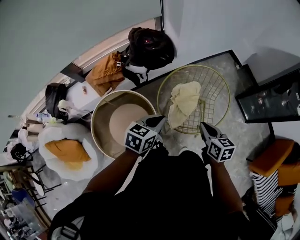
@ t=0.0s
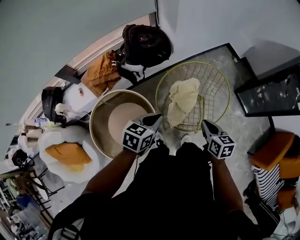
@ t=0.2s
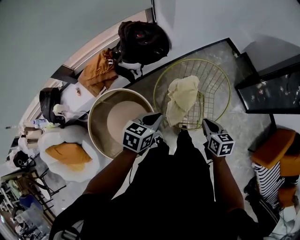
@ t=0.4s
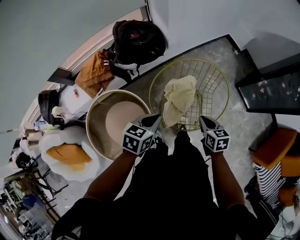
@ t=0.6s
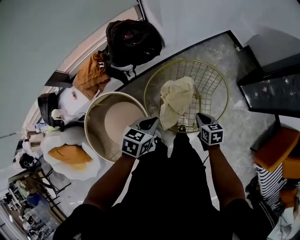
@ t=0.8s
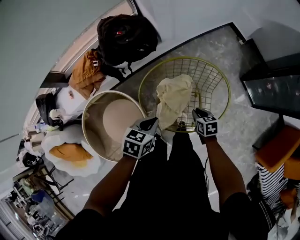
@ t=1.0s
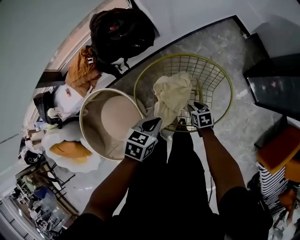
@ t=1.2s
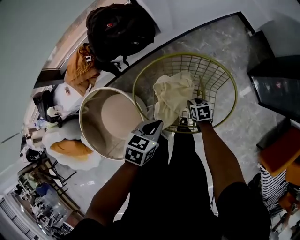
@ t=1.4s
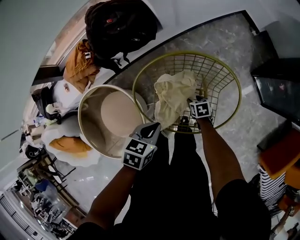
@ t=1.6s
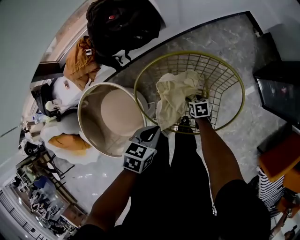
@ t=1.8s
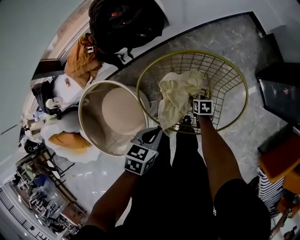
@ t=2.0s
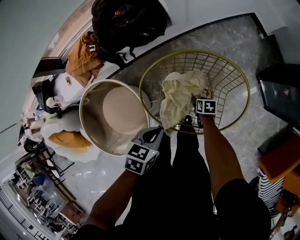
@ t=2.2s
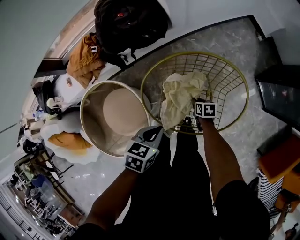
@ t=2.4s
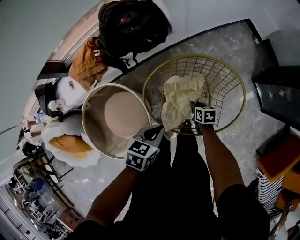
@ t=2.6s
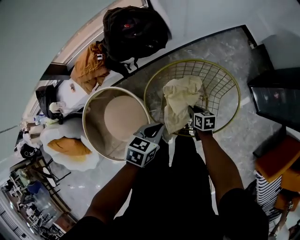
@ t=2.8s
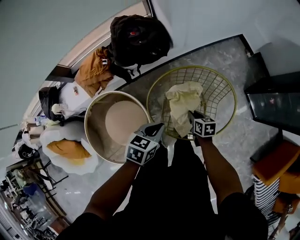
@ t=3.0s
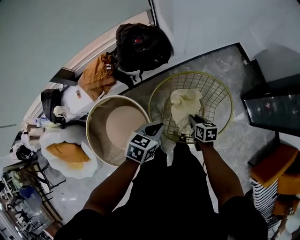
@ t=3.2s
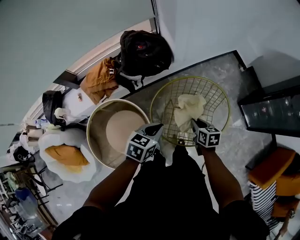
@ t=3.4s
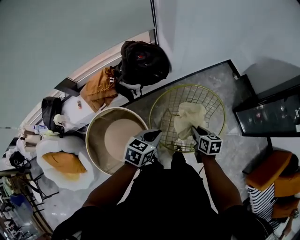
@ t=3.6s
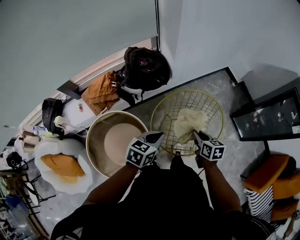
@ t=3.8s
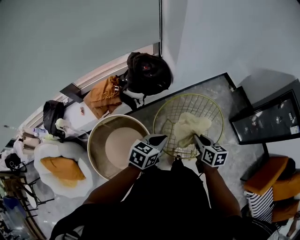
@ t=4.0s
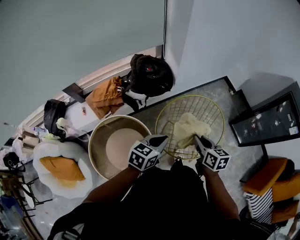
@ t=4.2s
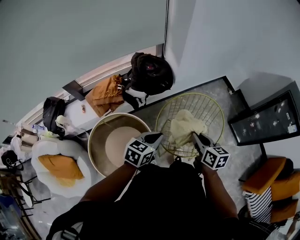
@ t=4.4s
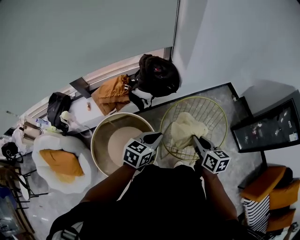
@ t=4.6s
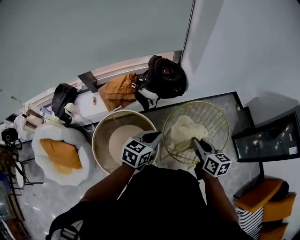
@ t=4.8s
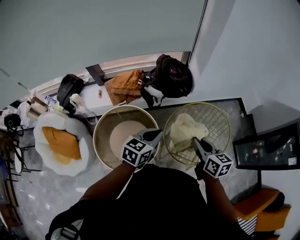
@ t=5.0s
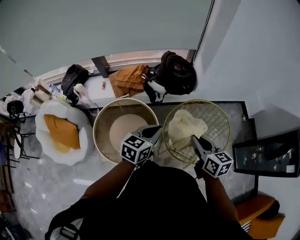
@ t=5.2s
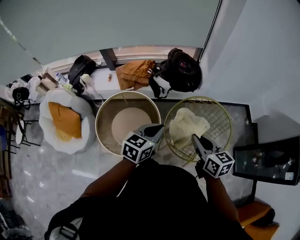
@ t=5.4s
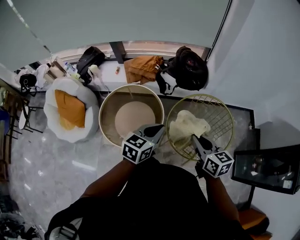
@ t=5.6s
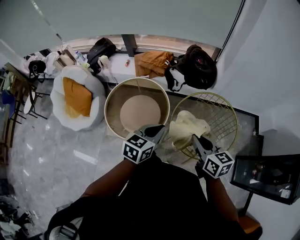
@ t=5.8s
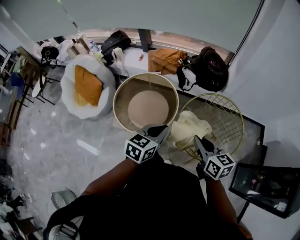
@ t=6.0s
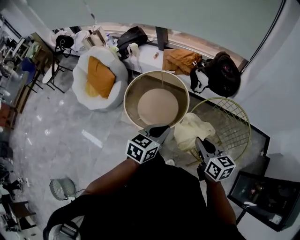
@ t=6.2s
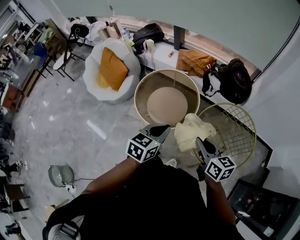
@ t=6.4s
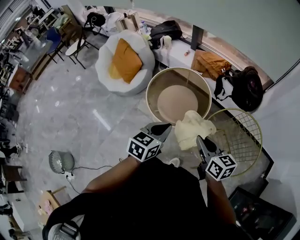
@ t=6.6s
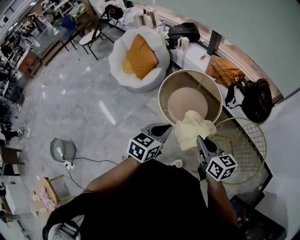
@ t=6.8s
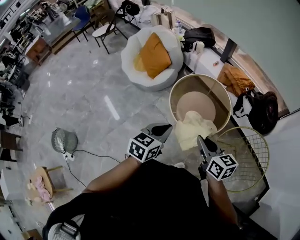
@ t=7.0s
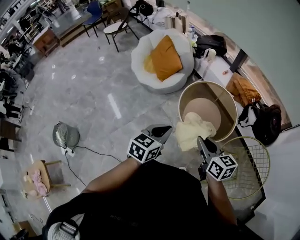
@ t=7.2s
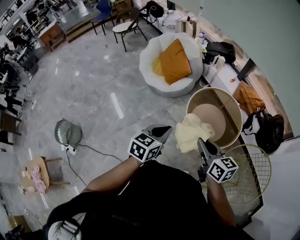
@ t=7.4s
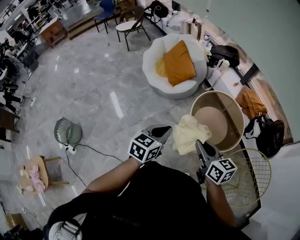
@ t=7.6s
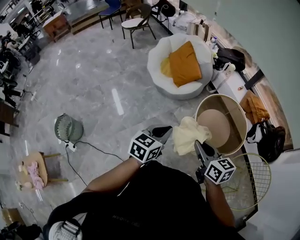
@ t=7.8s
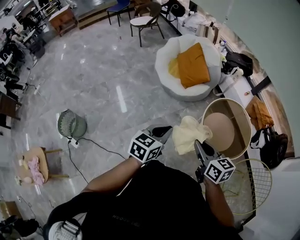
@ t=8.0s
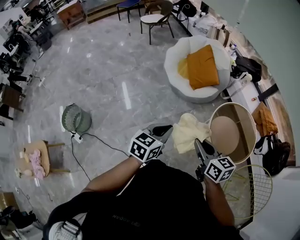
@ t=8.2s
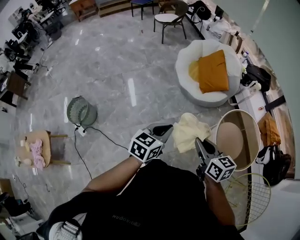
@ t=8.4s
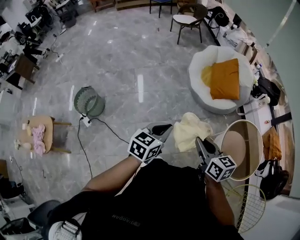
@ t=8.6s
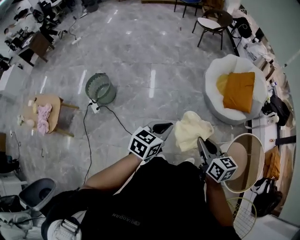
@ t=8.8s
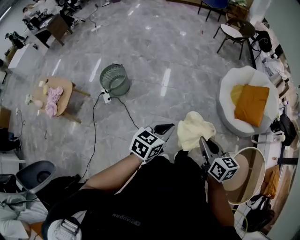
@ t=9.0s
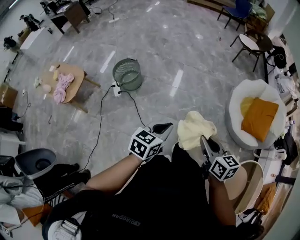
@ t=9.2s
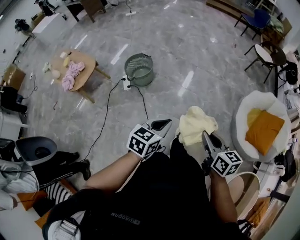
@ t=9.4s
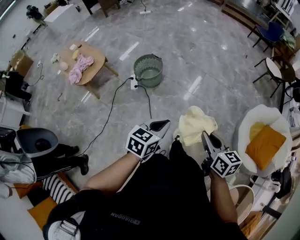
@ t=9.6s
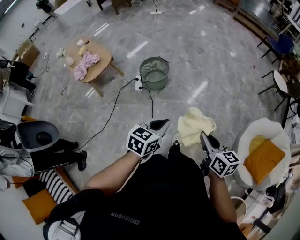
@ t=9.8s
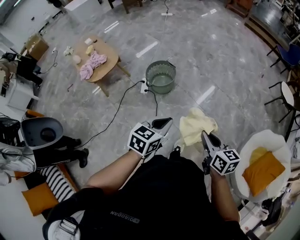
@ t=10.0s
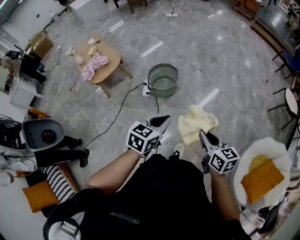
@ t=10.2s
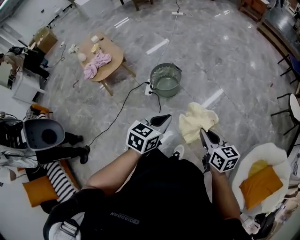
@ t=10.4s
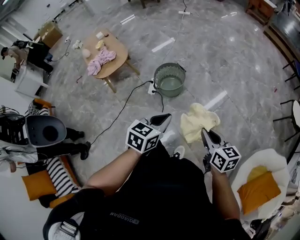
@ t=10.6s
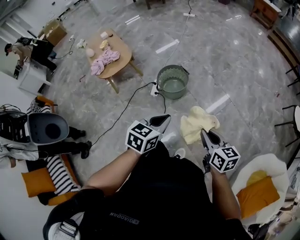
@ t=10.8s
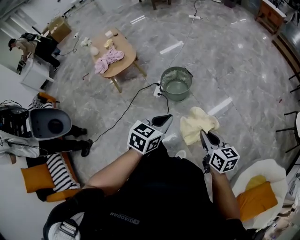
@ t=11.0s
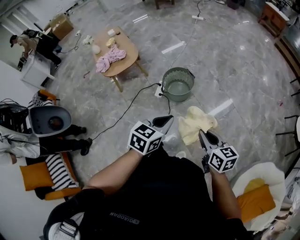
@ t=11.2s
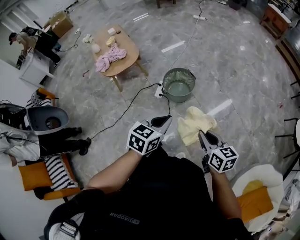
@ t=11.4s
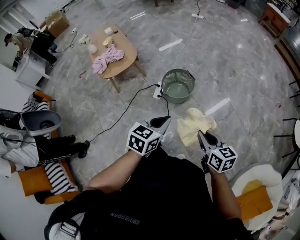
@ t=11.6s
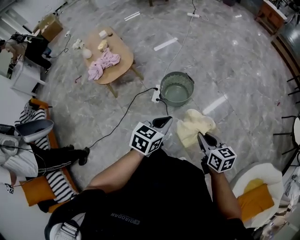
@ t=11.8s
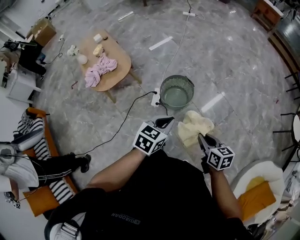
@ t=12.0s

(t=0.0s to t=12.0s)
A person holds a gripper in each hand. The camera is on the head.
t=0.0s - t=1.6s: The left gripper shifts roughly 25 cm downward, forward and to the right, and rotates about 20 degrees. The right gripper moves downward, some 40 cm, tips its fingers downward by about 30 degrees, and opens.
t=1.6s - t=3.0s: The right gripper goes about 15 cm upward, and closes. Meanwhile the left gripper shifts some 10 cm upward.
t=3.0s - t=4.4s: The right gripper goes some 30 cm upward, and turns by some 20 degrees; the left gripper travels upward, to the left and backward by approximately 15 cm.
t=4.4s - t=6.0s: The right gripper shifts by approximately 15 cm, and turns by about 50 degrees. The left gripper changes place by some 20 cm, and swivels roughly 40 degrees.
t=6.0s - t=7.6s: Both grippers are carried roughly 50 cm. The right gripper changes its angle by roughly 40 degrees. Meanwhile the left gripper rotates about 40 degrees.
t=7.6s - t=9.0s: The left gripper ends up some 40 cm from where it was, and swivels about 40 degrees; the right gripper shifts by about 40 cm, and changes its angle by some 40 degrees.
t=9.0s - t=10.4s: The right gripper shifts by about 40 cm, and changes its angle by some 40 degrees; the left gripper changes place by about 35 cm, and rotates approximately 40 degrees.
t=10.4s - t=12.0s: The right gripper moves forward, to the left and downward, roughly 25 cm. Meanwhile the left gripper heads forward and to the left, covering roughly 25 cm.

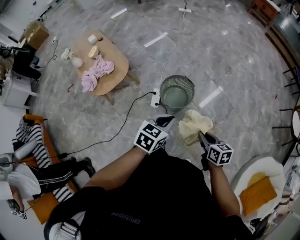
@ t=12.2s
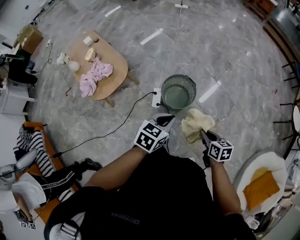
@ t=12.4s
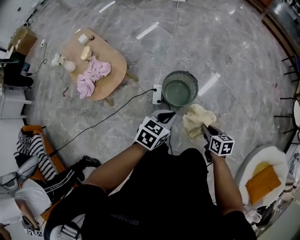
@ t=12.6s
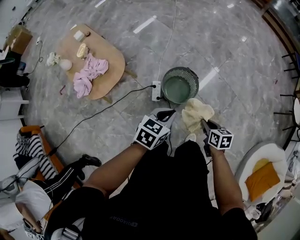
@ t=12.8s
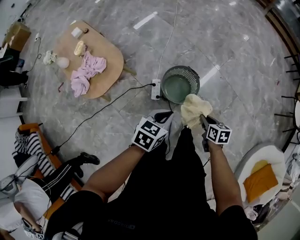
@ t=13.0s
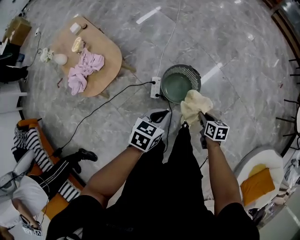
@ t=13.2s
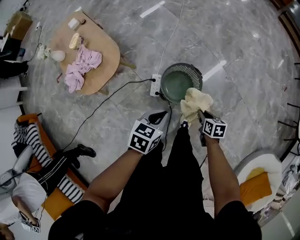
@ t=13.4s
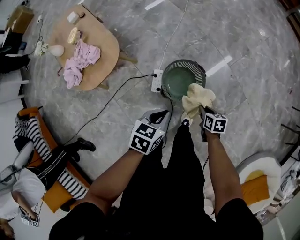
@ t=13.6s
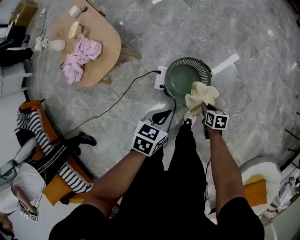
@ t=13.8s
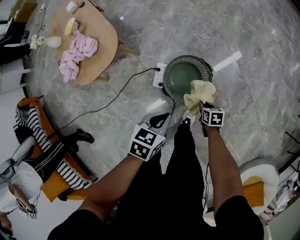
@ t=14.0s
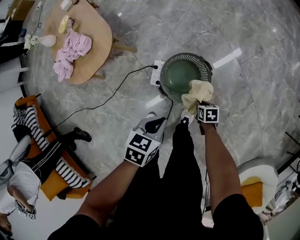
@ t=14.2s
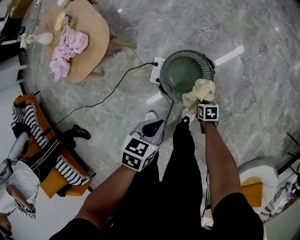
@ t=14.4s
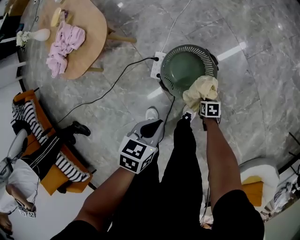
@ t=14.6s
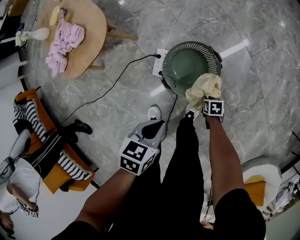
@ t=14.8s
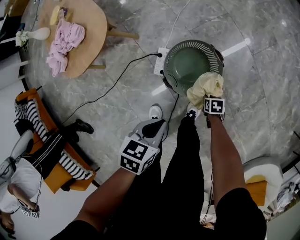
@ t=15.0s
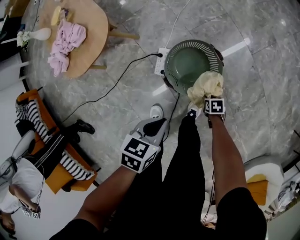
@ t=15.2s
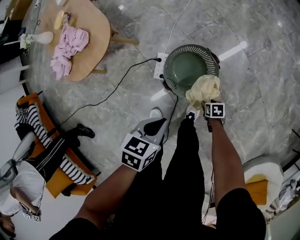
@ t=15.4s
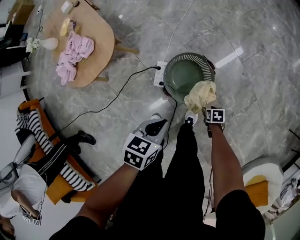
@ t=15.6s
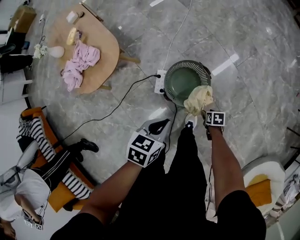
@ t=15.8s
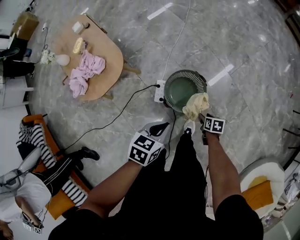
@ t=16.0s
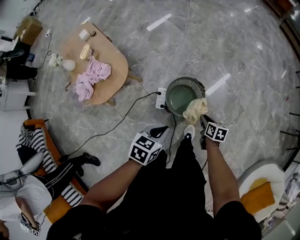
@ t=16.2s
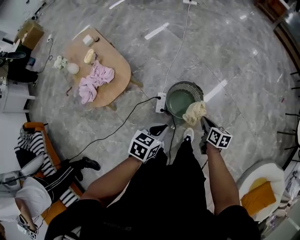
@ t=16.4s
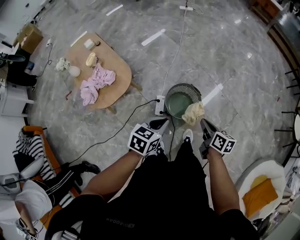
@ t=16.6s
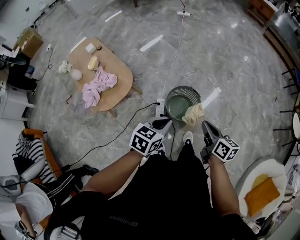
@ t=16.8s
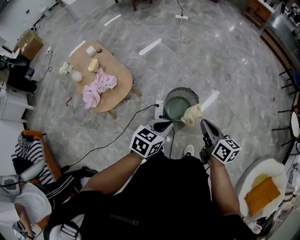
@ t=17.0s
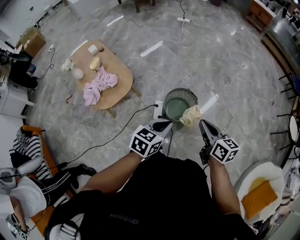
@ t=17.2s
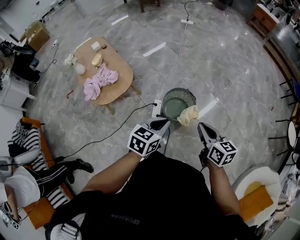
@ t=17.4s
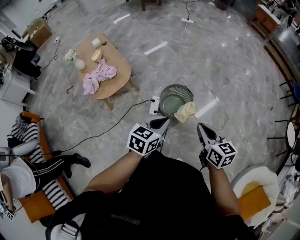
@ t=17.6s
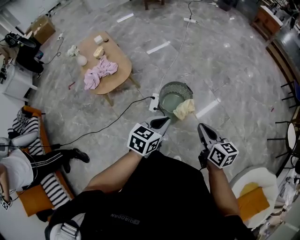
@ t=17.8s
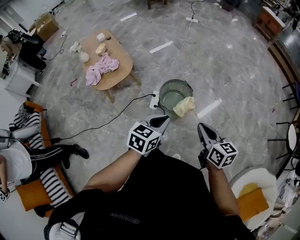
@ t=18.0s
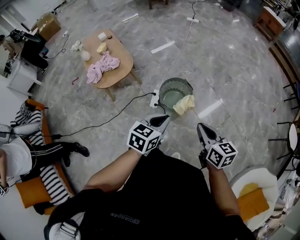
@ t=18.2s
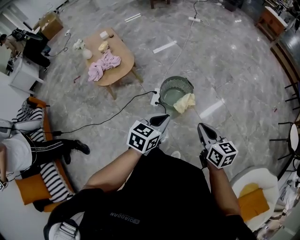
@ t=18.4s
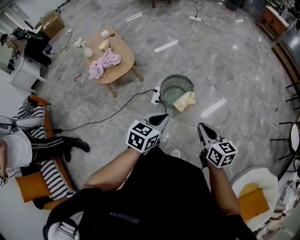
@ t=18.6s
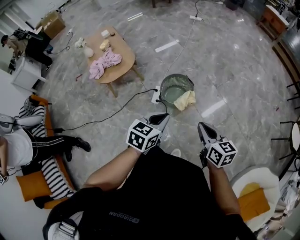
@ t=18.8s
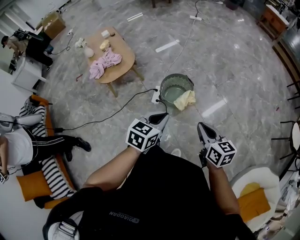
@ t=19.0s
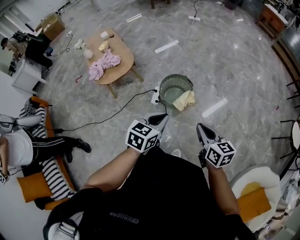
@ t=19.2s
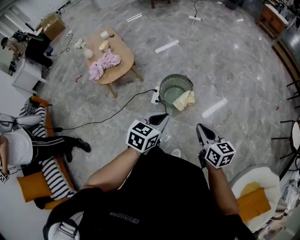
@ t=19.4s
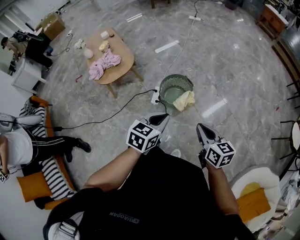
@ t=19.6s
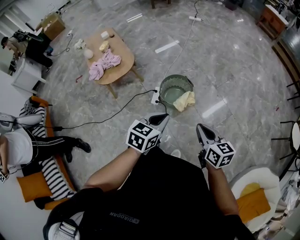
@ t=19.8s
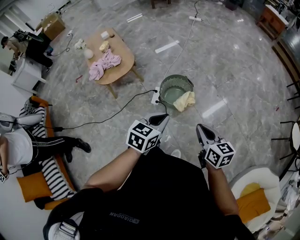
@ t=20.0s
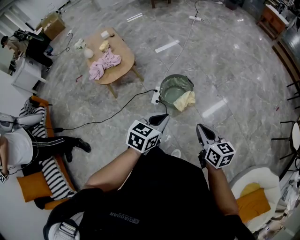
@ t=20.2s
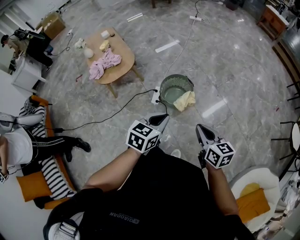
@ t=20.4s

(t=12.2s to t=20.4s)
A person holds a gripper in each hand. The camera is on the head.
t=12.2s - t=13.8s: The left gripper moves downward and forward, about 25 cm, and rotates about 20 degrees. Meanwhile the right gripper moves downward and forward, roughly 40 cm, and rotates about 20 degrees.
t=13.8s - t=15.4s: The left gripper moves downward, roughly 5 cm, while the right gripper goes some 20 cm downward, and opens its fingers.
t=15.4s - t=17.2s: The right gripper moves upward, some 60 cm, tips its fingers upward by roughly 50 degrees, and closes up, while the left gripper moves upward, about 30 cm, and rotates roughly 30 degrees.
t=17.2s - t=18.8s: Both grippers travel together backward and to the right, some 20 cm.
t=18.8s - t=20.4s: Neither gripper changes place.

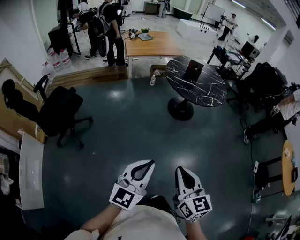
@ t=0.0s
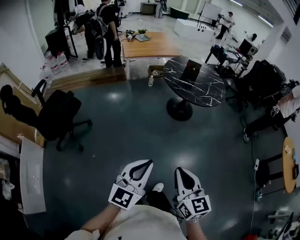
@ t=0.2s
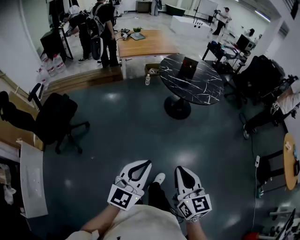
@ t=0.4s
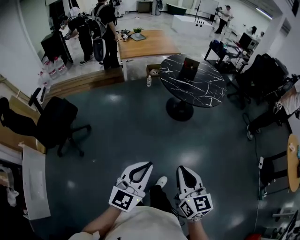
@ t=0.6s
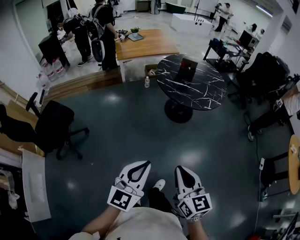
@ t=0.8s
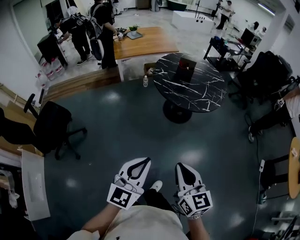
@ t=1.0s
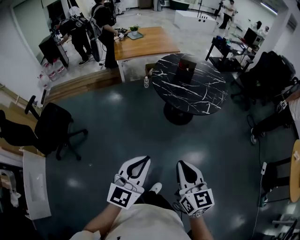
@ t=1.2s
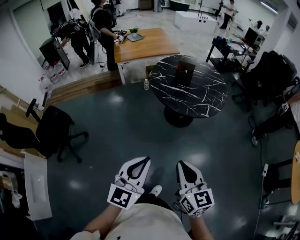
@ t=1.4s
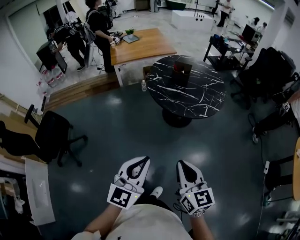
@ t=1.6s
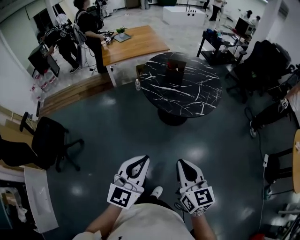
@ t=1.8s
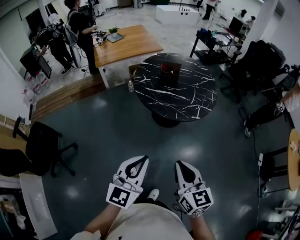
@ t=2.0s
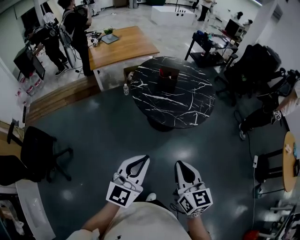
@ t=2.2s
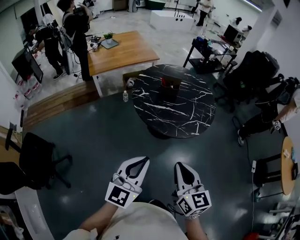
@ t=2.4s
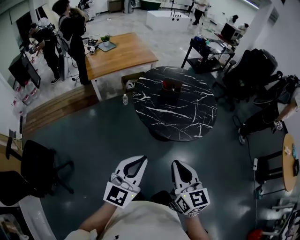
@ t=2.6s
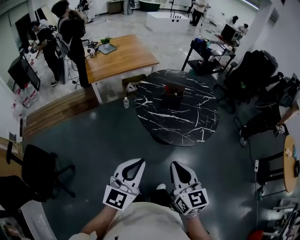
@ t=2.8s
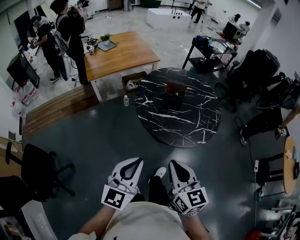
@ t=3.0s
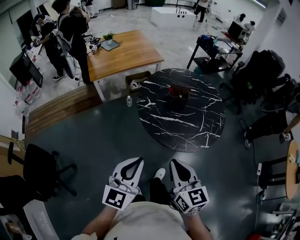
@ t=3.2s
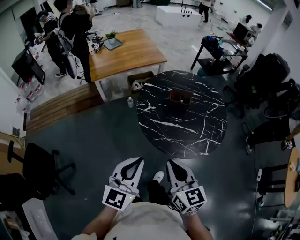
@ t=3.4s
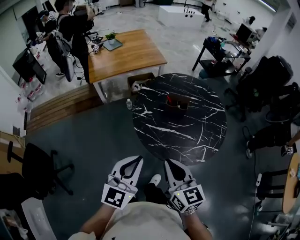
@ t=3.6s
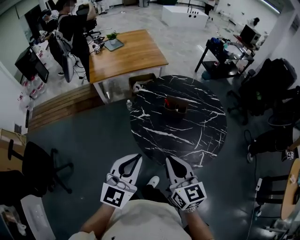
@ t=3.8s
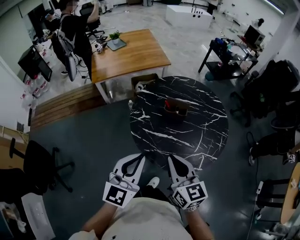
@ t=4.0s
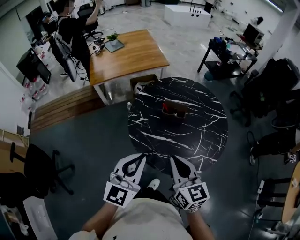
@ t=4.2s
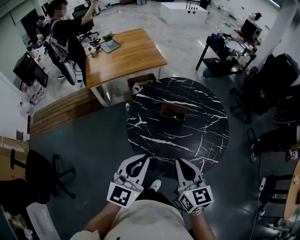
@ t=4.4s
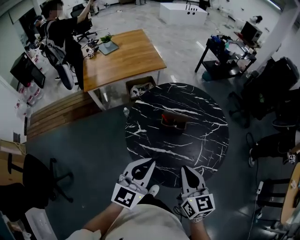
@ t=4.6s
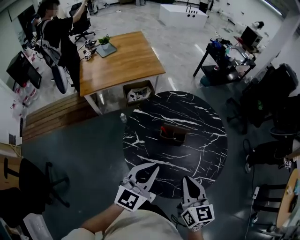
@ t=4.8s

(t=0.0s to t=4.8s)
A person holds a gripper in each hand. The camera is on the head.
t=0.0s - t=1.6s: The two grippers go roughly 35 cm forward and to the right.
t=1.6s - t=3.2s: The two grippers go roughly 35 cm forward and to the left.
t=3.2s - t=4.8s: Both grippers move forward and to the right, approximately 35 cm.
